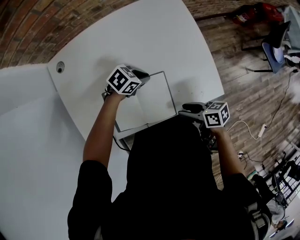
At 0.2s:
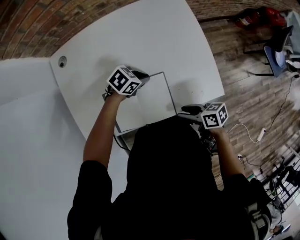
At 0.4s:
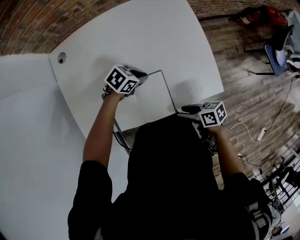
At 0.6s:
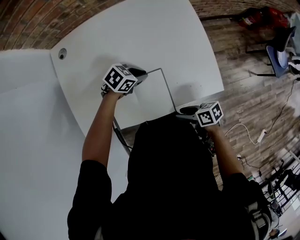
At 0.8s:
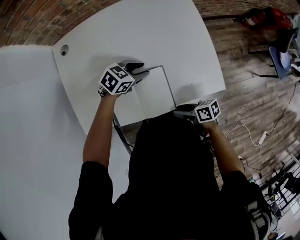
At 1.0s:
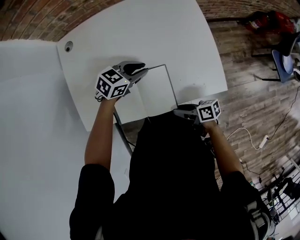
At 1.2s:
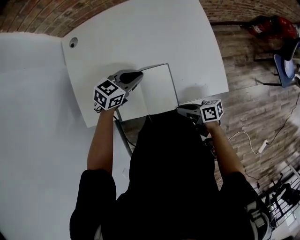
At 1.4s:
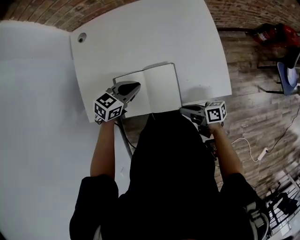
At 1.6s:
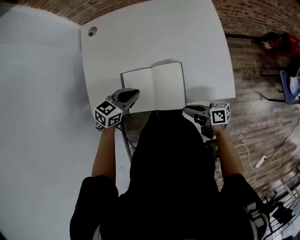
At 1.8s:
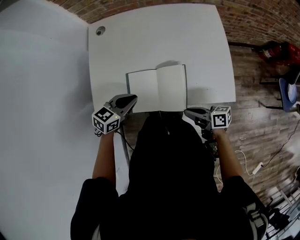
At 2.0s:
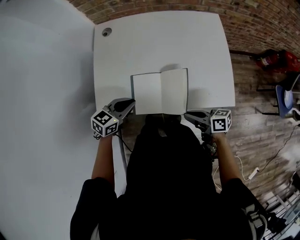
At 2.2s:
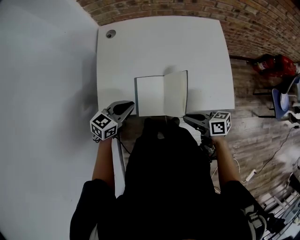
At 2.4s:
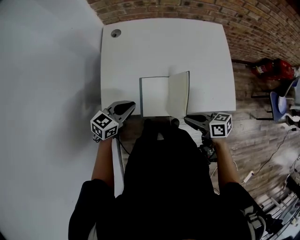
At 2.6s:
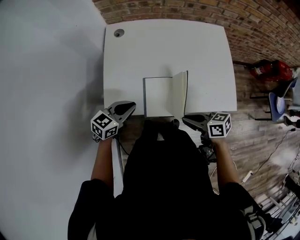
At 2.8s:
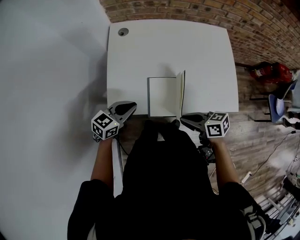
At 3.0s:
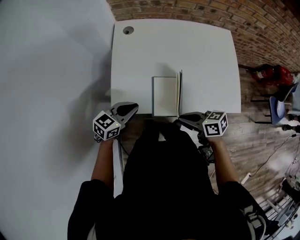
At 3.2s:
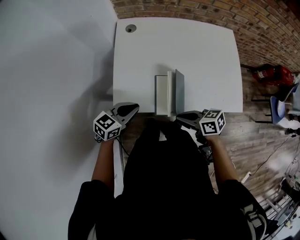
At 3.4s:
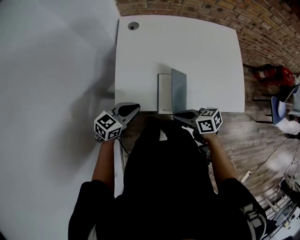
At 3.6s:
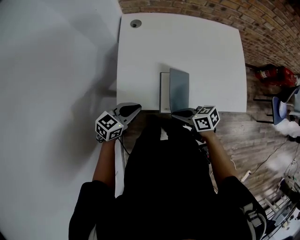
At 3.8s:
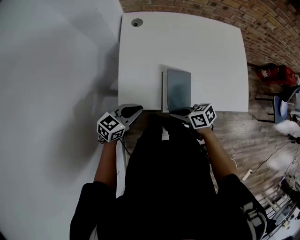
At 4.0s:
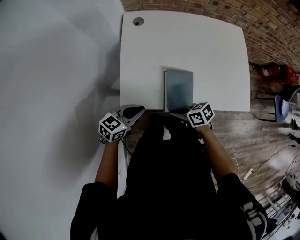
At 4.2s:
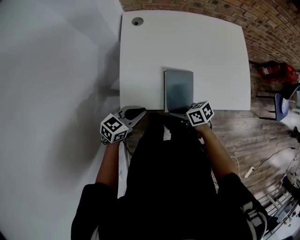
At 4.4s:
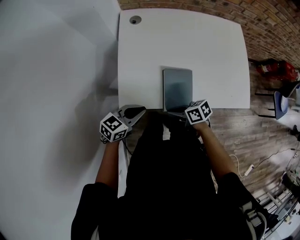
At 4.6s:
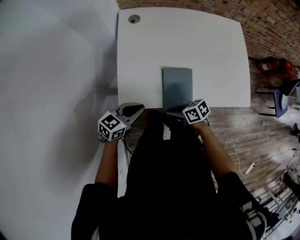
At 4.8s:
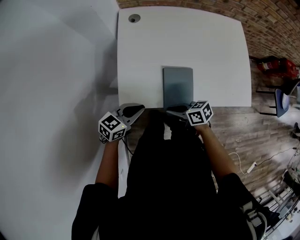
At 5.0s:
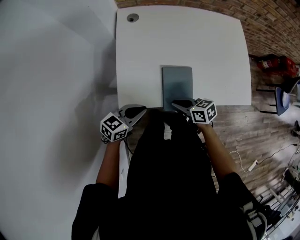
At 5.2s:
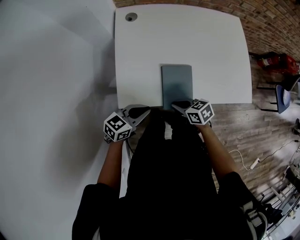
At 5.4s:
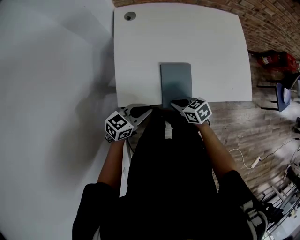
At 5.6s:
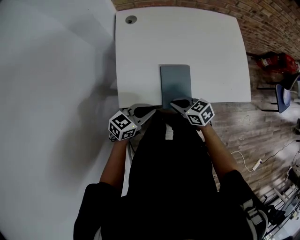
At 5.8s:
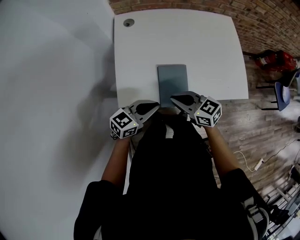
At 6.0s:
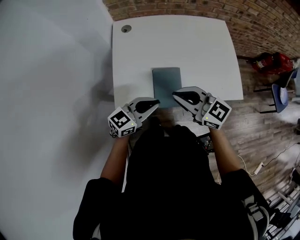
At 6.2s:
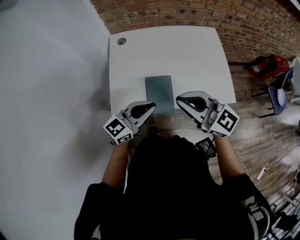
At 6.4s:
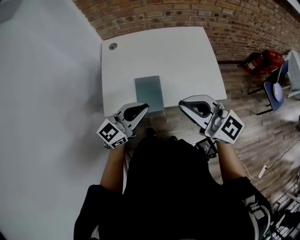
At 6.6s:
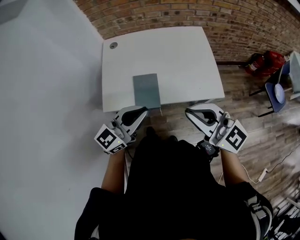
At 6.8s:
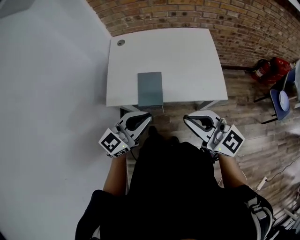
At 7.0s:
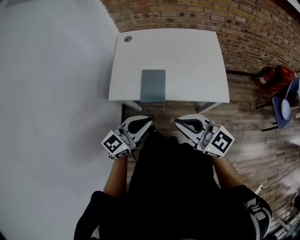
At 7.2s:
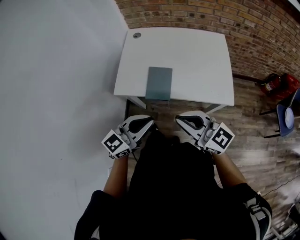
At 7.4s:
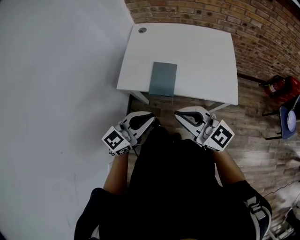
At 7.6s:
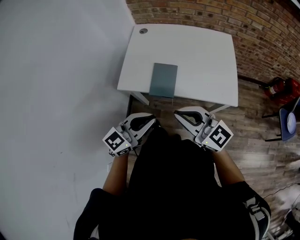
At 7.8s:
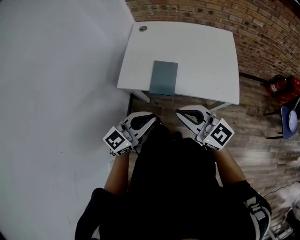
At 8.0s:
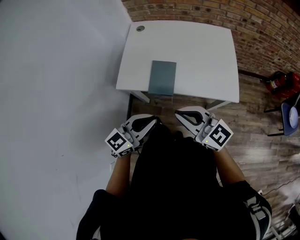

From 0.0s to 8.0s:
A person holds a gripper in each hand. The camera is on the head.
From 0.0s to 1.6s: The right gripper shifts by approximately 5 cm, and closes up. Meanwhile the left gripper changes place by some 20 cm, changes its angle by about 40 degrees, and opens, then closes once more.
From 1.6s to 3.2s: The right gripper shifts by about 20 cm, and turns by about 30 degrees, while the left gripper moves about 20 cm.
From 3.2s to 4.8s: The right gripper heads downward, covering roughly 10 cm.
From 4.8s to 6.4s: The left gripper is displaced upward by about 20 cm, and changes its angle by approximately 30 degrees. Meanwhile the right gripper goes approximately 35 cm upward, and rotates around the line of its fingers by roughly 60 degrees, counterclockwise from behind.
From 6.4s to 8.0s: The left gripper is displaced backward by about 15 cm; the right gripper heads backward and downward, covering some 10 cm.

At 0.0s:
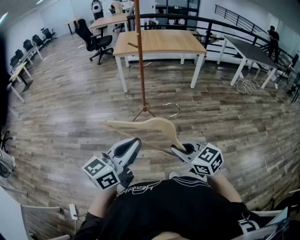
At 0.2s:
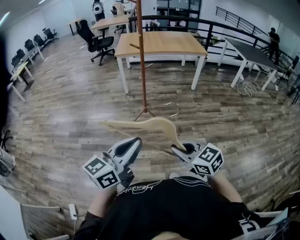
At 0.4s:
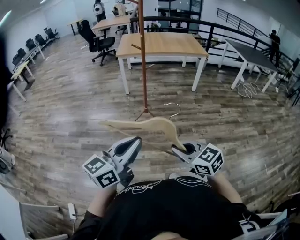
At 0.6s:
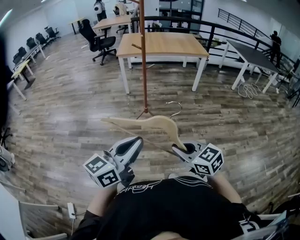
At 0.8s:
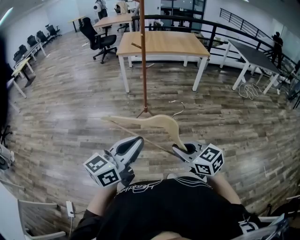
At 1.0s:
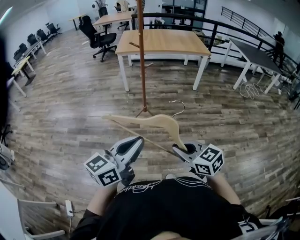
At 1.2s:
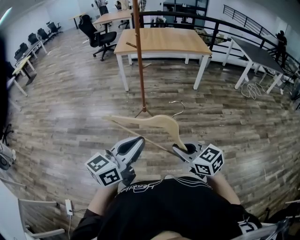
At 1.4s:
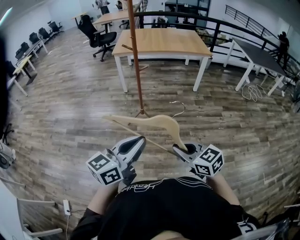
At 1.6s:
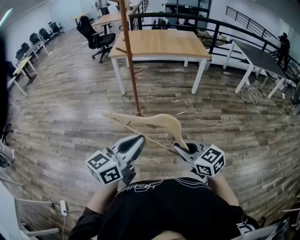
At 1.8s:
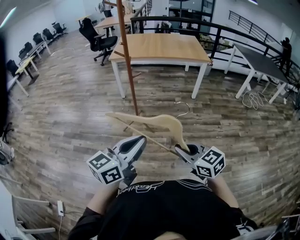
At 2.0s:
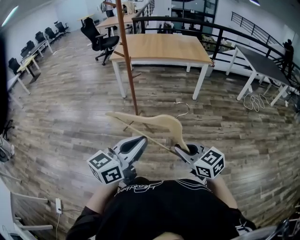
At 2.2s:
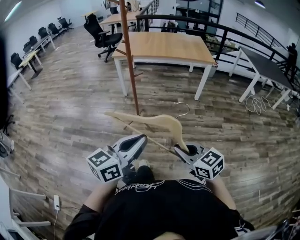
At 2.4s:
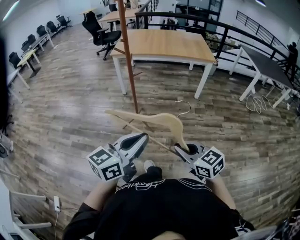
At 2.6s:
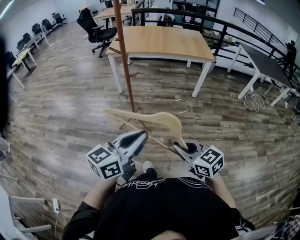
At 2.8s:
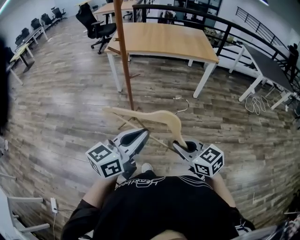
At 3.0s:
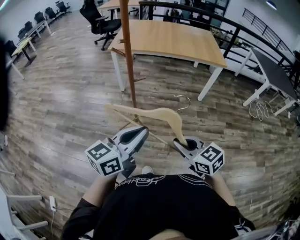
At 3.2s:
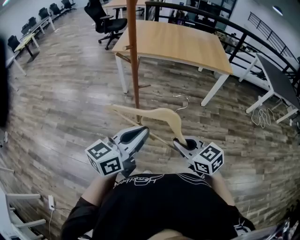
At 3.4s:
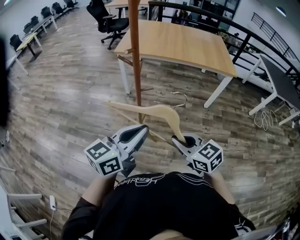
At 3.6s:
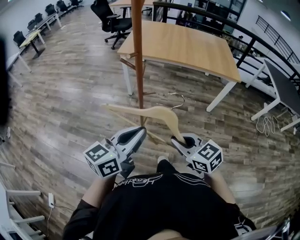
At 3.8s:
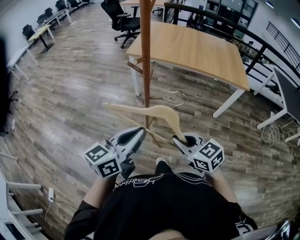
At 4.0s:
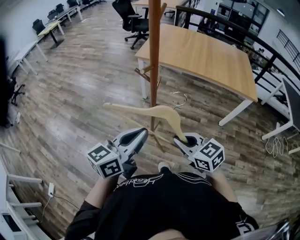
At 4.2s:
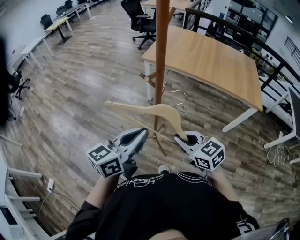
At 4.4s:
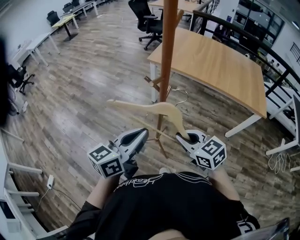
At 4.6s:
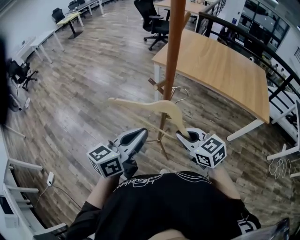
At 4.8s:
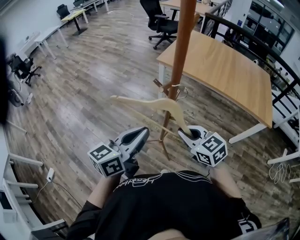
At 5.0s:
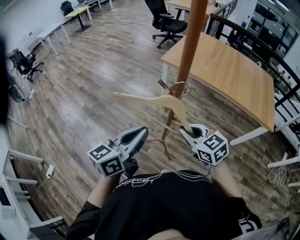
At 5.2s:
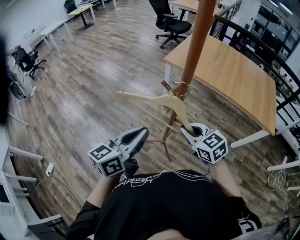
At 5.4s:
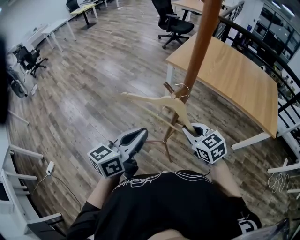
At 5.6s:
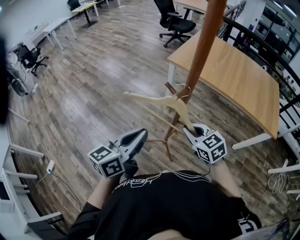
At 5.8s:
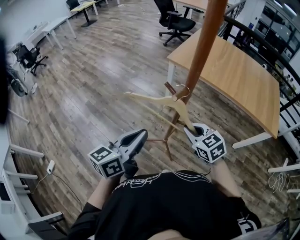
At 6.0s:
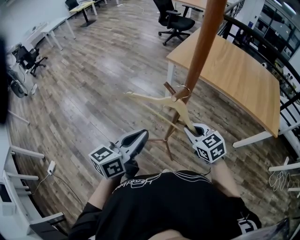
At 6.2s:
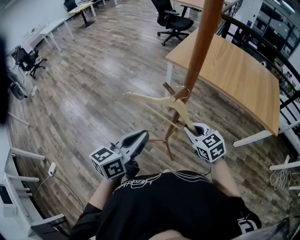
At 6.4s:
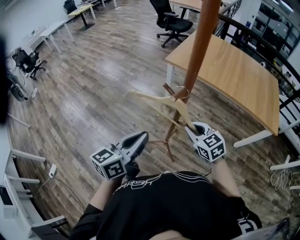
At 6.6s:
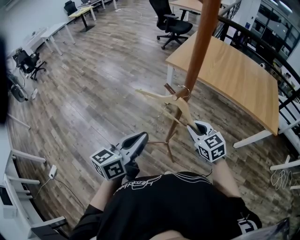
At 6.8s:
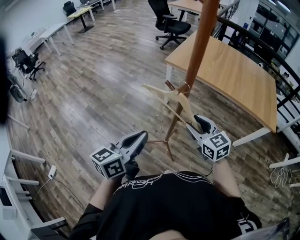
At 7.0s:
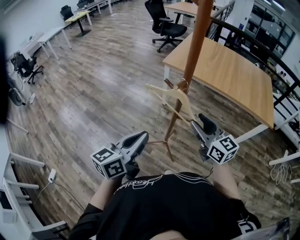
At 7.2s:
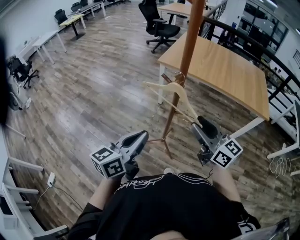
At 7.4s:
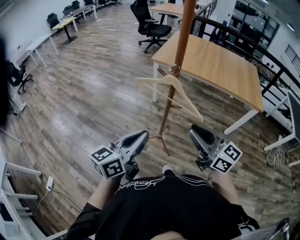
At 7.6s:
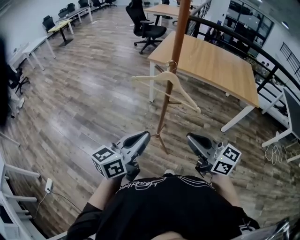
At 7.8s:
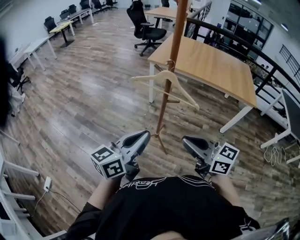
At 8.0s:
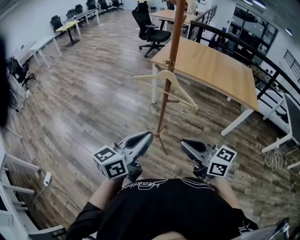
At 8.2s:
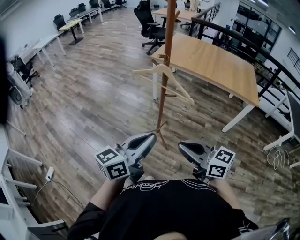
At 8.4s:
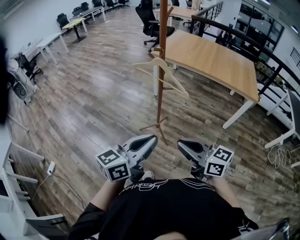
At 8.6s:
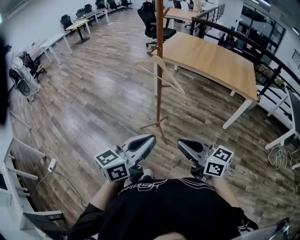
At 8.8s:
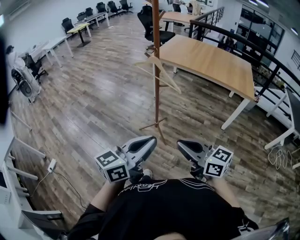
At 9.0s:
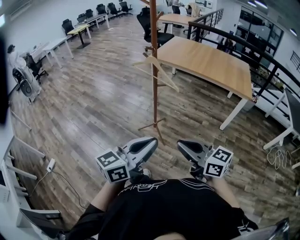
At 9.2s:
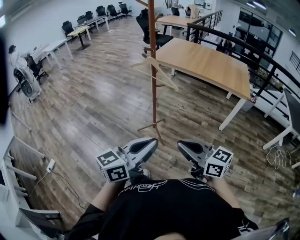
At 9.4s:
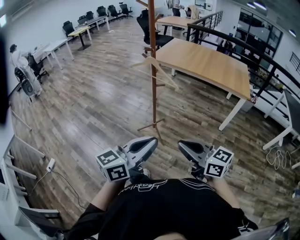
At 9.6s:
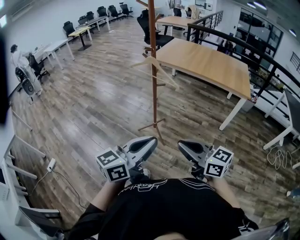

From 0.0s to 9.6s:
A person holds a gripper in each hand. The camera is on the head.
From 0.0s to 1.6s: Both grippers move to the right and forward, approximately 20 cm.
From 1.6s to 3.2s: The two grippers go roughly 30 cm forward.
From 3.2s to 4.8s: Both grippers move forward, some 20 cm. The left gripper turns by about 30 degrees, while the right gripper swivels about 20 degrees.
From 4.8s to 6.4s: The left gripper moves some 5 cm; the right gripper moves forward and downward, some 10 cm.
From 6.4s to 8.0s: The grippers both shift backward by about 25 cm. The right gripper changes its angle by approximately 30 degrees, and opens and closes again.
From 8.0s to 9.6s: The grippers both shift backward and to the right by about 25 cm.

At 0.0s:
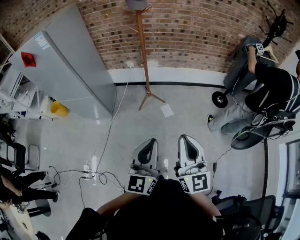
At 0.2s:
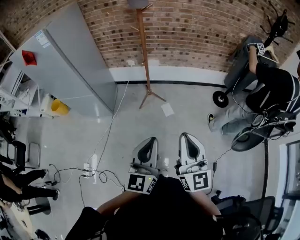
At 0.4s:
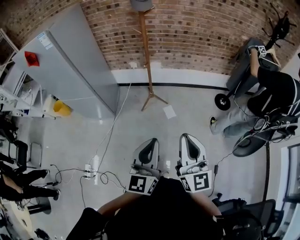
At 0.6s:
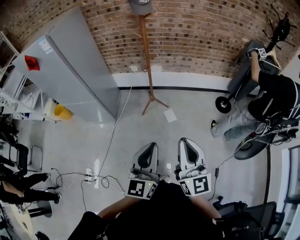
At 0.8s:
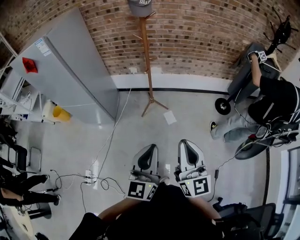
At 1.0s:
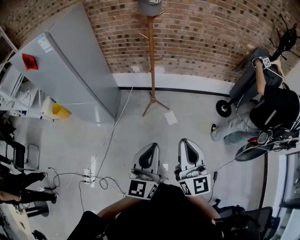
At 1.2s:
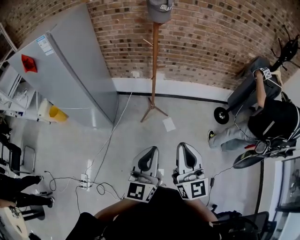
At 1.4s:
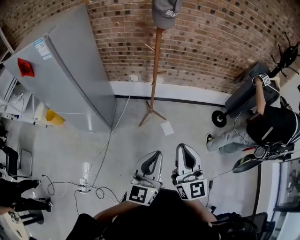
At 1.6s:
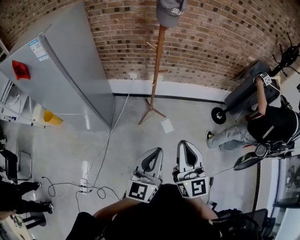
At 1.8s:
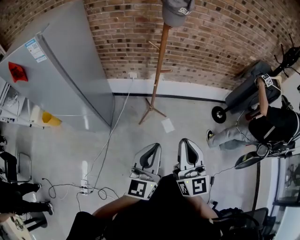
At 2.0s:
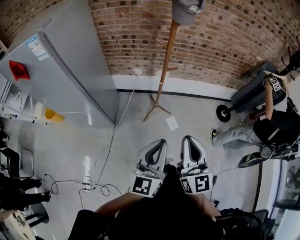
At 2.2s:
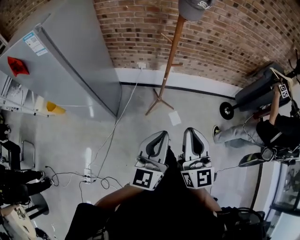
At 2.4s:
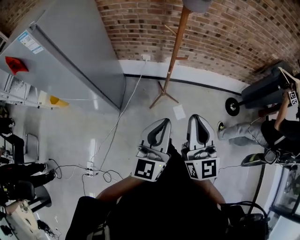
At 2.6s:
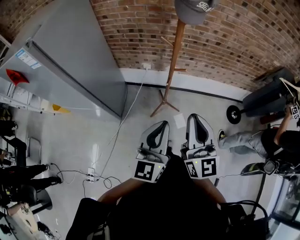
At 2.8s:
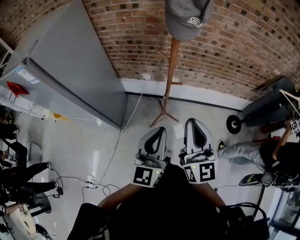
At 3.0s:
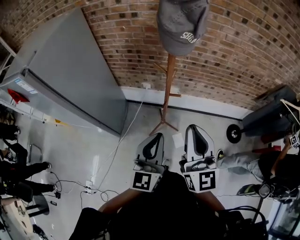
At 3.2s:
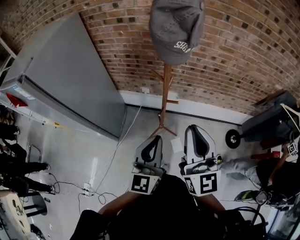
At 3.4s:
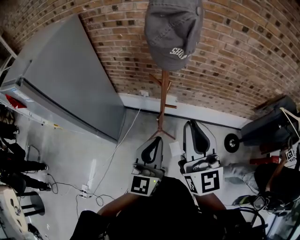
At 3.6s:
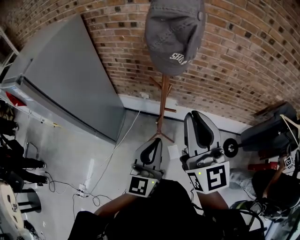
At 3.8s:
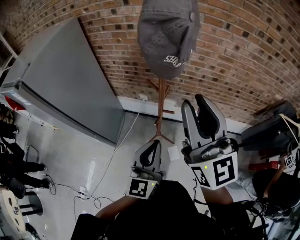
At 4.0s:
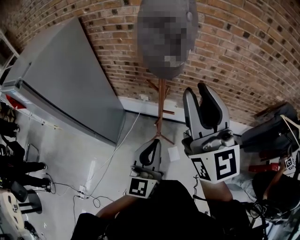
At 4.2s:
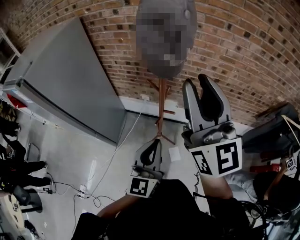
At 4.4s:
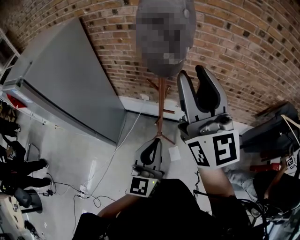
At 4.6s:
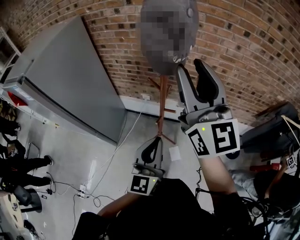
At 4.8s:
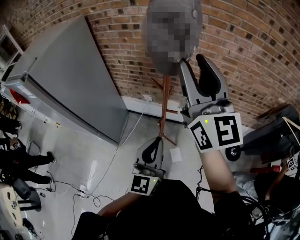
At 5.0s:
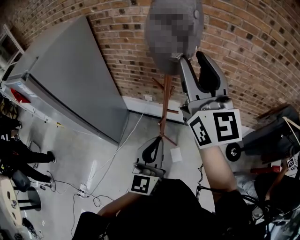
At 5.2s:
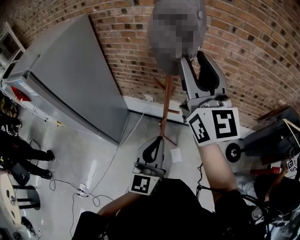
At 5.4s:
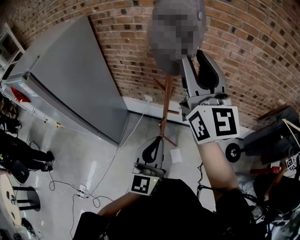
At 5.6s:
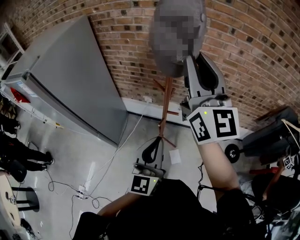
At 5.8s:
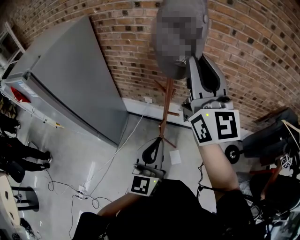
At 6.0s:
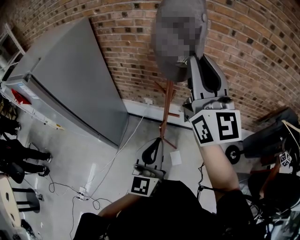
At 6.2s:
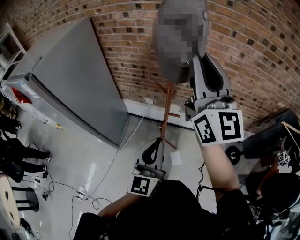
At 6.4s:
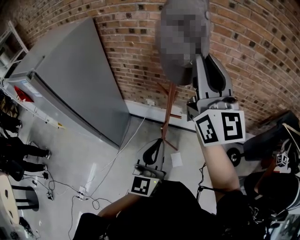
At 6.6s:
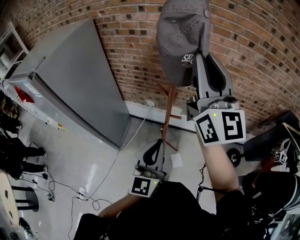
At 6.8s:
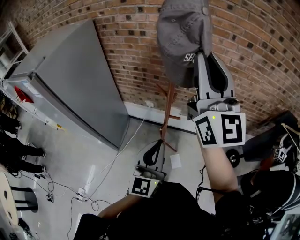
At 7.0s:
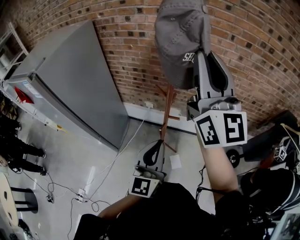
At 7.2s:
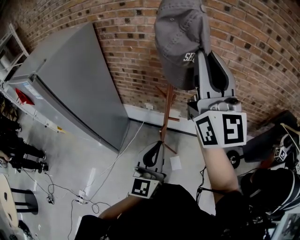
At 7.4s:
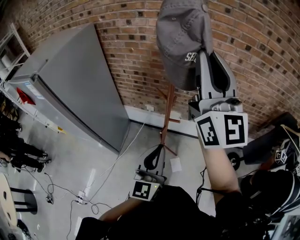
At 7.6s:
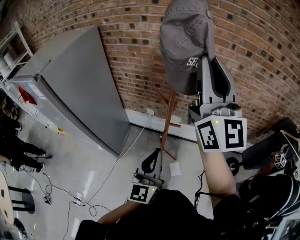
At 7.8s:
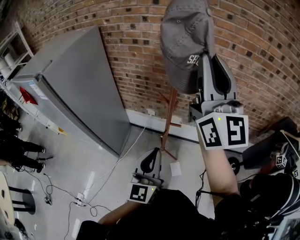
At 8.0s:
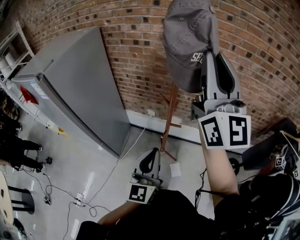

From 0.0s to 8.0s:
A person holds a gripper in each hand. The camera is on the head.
From 0.0s to 1.6s: The two grippers go approximately 20 cm forward and to the left.
From 1.6s to 3.2s: The grippers both shift forward by some 30 cm.
From 3.2s to 4.8s: The right gripper moves upward and forward, about 20 cm, and opens its fingers.
From 4.8s to 6.4s: The right gripper closes up.
From 6.4s to 8.0s: The right gripper heads upward, covering about 5 cm.
